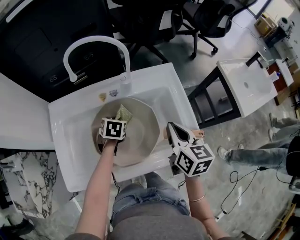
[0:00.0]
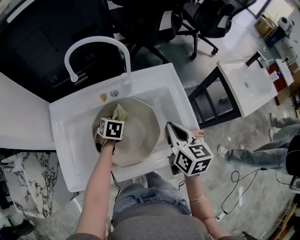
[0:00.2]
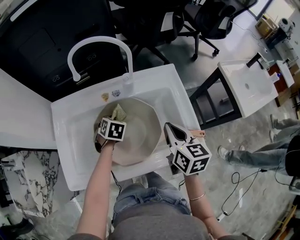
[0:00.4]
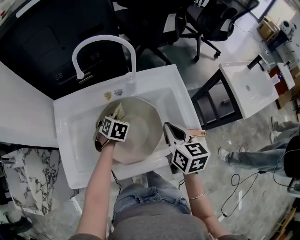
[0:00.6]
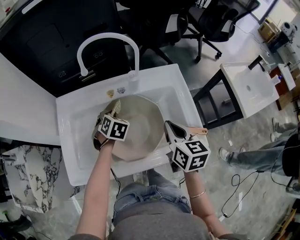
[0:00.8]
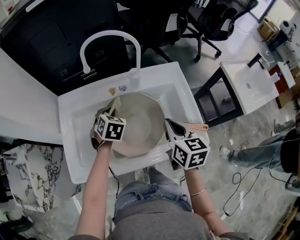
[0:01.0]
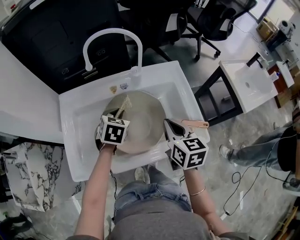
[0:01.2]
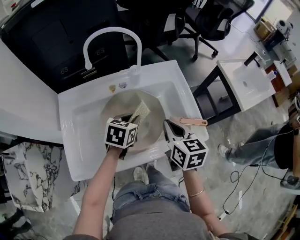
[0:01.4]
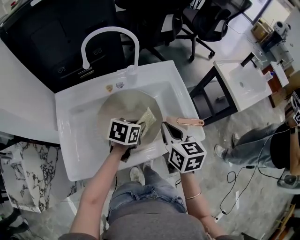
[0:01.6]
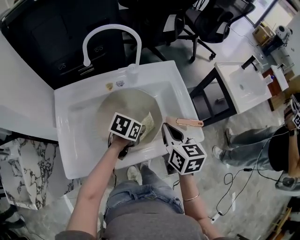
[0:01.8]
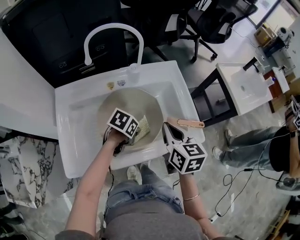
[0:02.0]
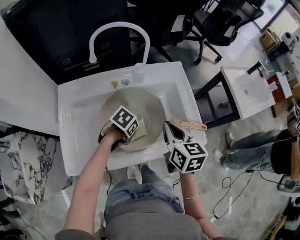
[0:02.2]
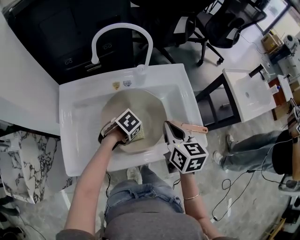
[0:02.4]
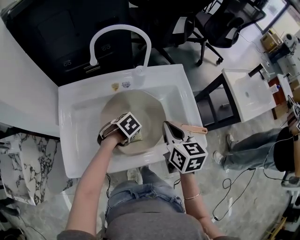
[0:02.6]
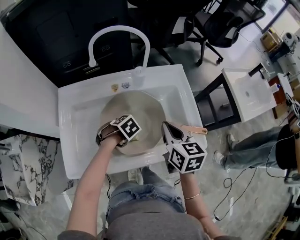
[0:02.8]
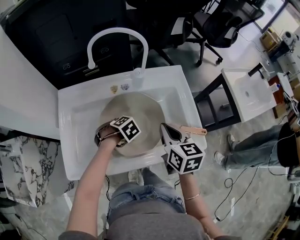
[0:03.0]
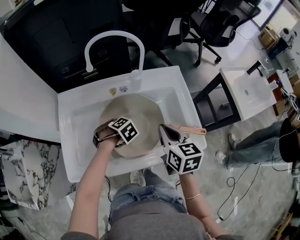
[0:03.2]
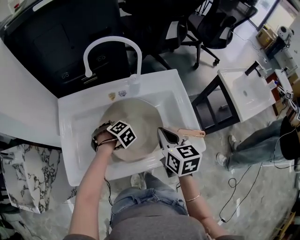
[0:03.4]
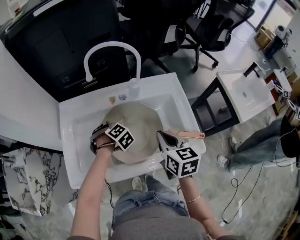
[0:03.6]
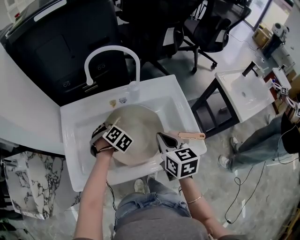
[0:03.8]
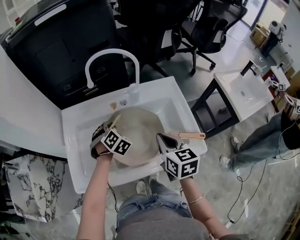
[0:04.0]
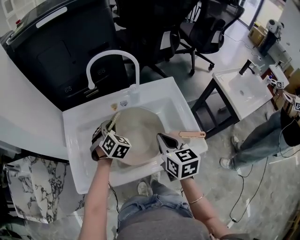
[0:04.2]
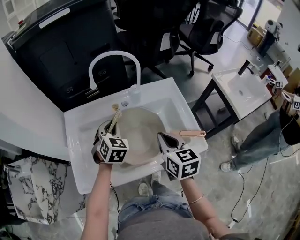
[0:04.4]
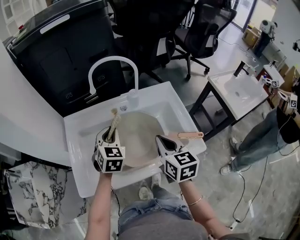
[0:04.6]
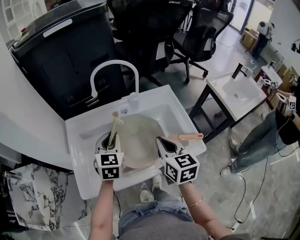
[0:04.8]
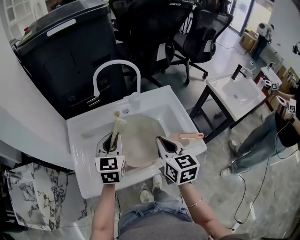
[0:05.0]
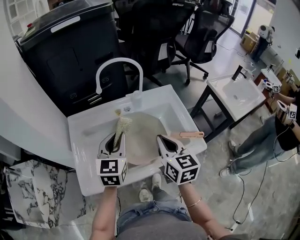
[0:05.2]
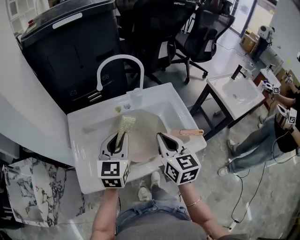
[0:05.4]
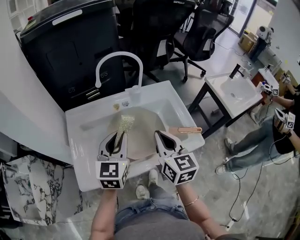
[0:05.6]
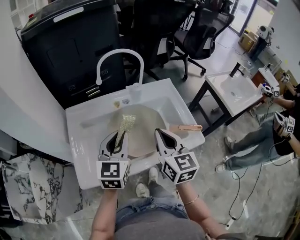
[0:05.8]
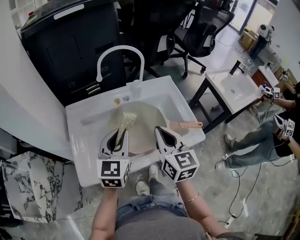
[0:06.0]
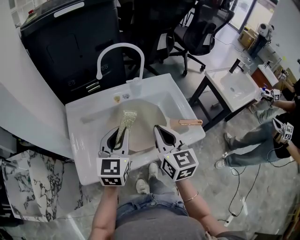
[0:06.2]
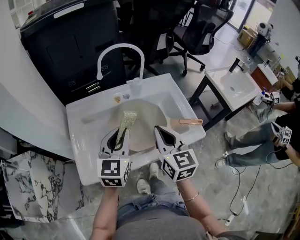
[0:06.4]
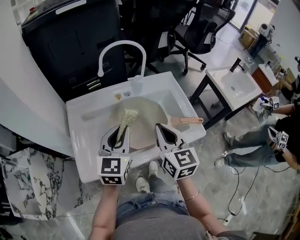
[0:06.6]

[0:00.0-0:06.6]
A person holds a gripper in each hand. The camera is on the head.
0:00.0 to 0:01.6: The left gripper changes place by roughly 15 cm, and rotates some 30 degrees. The right gripper changes place by about 5 cm.
0:01.6 to 0:03.2: The left gripper changes place by approximately 15 cm, and points its fingers about 40 degrees further downward.
0:03.2 to 0:05.0: The left gripper goes approximately 20 cm upward, and angles its fingers upward, by roughly 60 degrees; the right gripper travels upward by roughly 5 cm.
0:05.0 to 0:06.6: The right gripper ends up about 5 cm from where it was, while the left gripper goes some 5 cm backward.

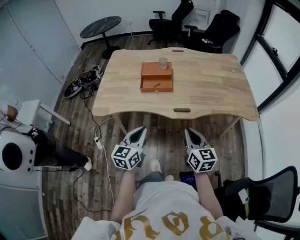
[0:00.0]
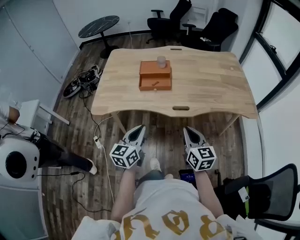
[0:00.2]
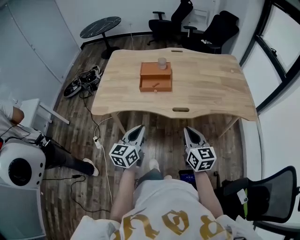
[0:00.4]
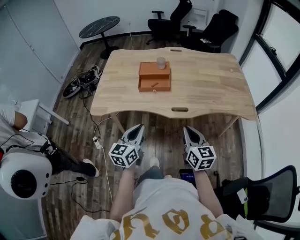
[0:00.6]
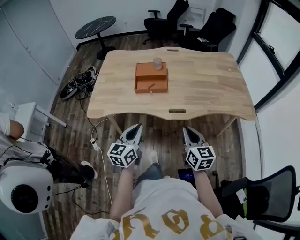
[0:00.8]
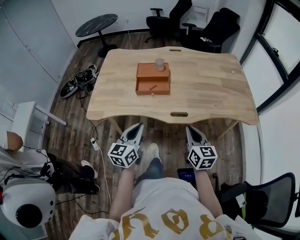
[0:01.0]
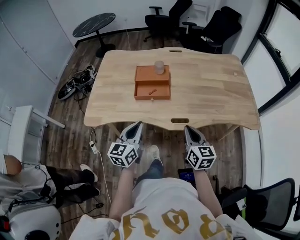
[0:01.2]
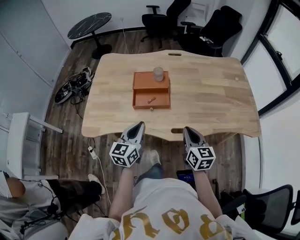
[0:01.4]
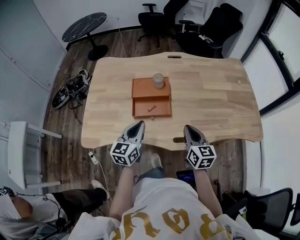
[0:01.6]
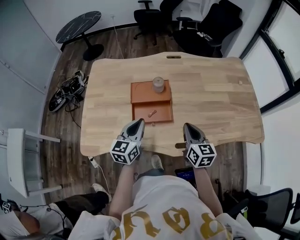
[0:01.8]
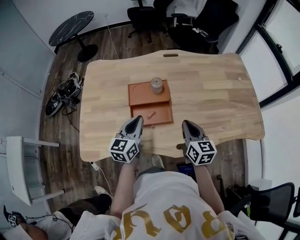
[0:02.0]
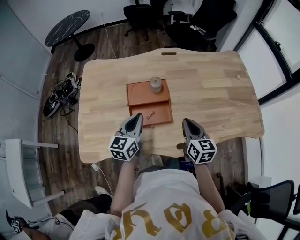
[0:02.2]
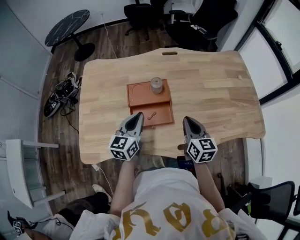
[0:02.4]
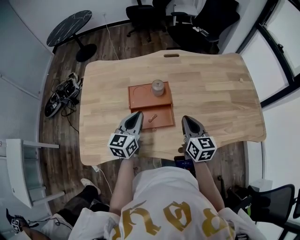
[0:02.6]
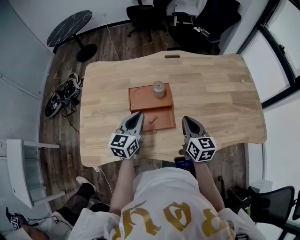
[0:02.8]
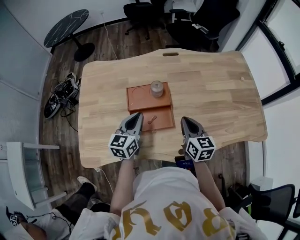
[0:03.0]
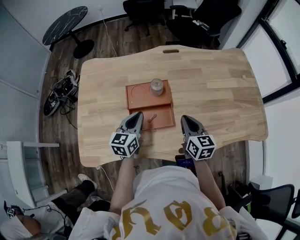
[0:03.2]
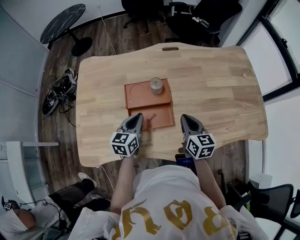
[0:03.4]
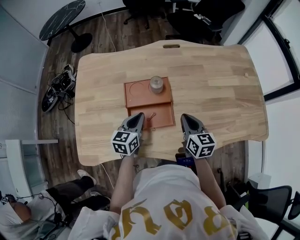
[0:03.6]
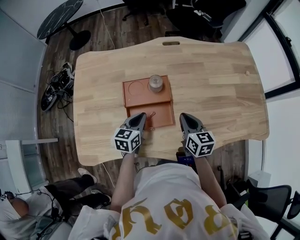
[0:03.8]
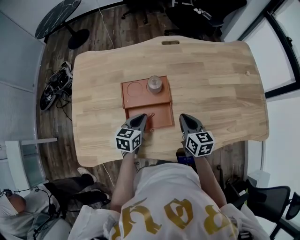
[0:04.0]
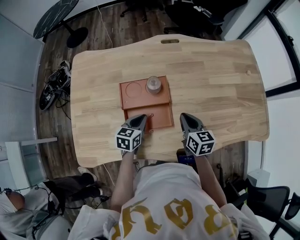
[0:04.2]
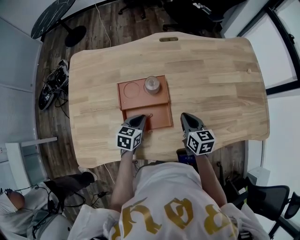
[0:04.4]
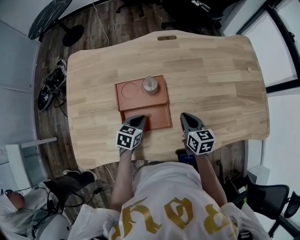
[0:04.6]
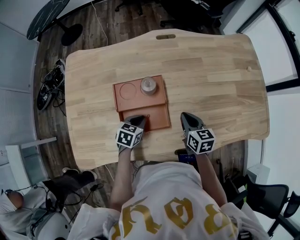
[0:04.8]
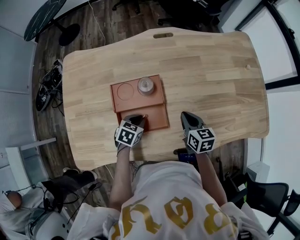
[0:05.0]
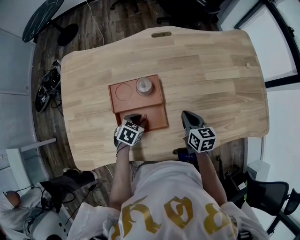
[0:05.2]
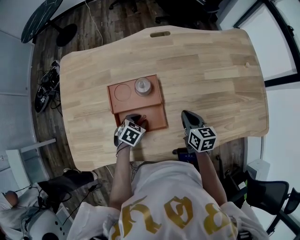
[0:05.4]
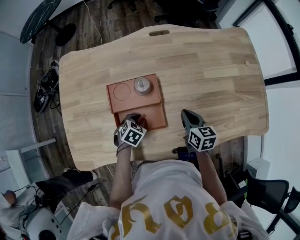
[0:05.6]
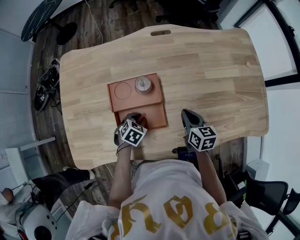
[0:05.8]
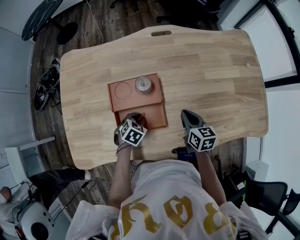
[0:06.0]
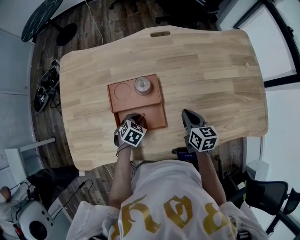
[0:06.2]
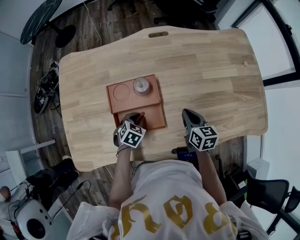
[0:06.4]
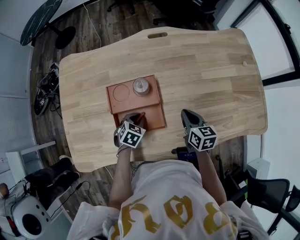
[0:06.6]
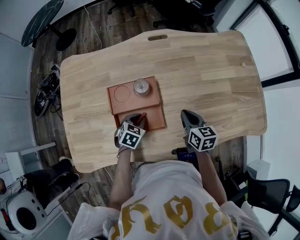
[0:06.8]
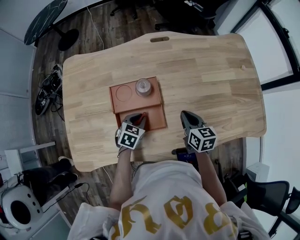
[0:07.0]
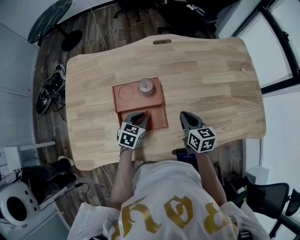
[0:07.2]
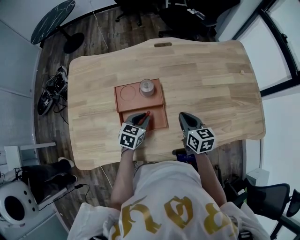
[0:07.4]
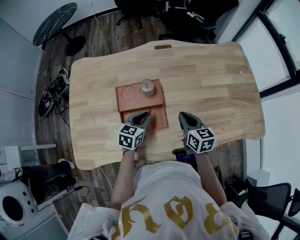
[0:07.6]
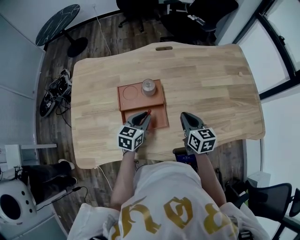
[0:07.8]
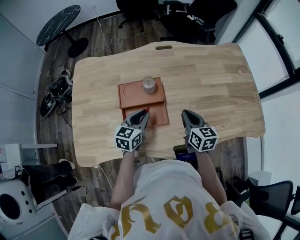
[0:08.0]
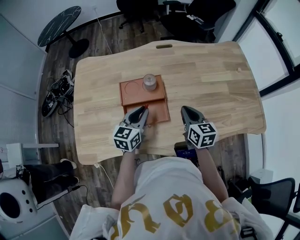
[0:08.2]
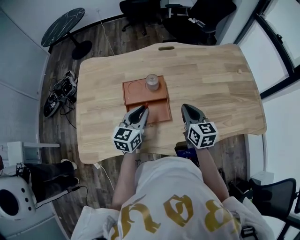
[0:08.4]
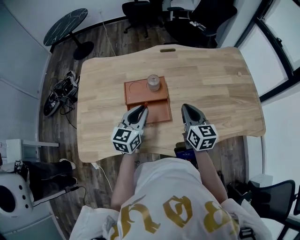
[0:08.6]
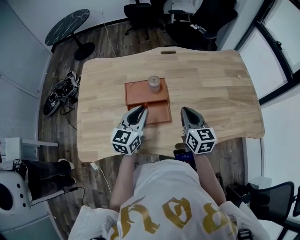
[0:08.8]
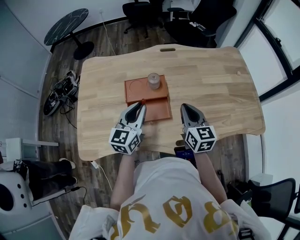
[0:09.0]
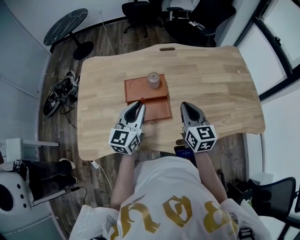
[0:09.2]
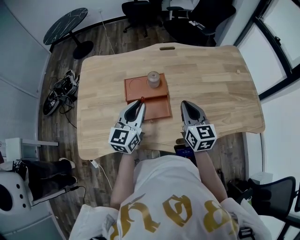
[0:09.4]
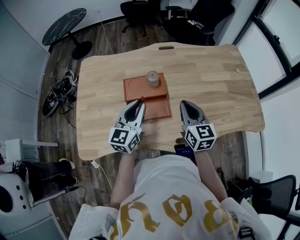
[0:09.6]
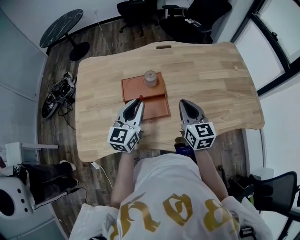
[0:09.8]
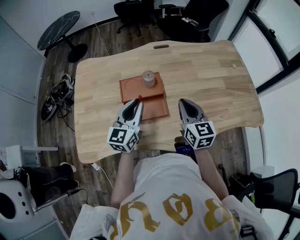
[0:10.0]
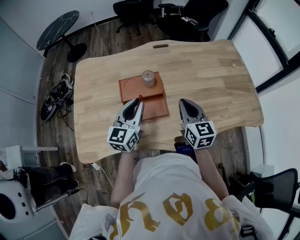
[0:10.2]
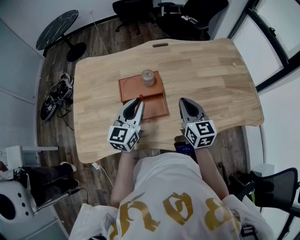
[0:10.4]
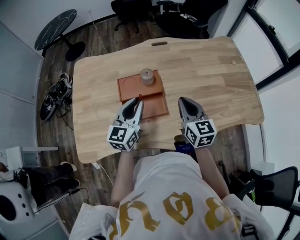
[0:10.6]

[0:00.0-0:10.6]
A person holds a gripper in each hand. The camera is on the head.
0:00.0 to 0:01.6: Both grippers move forward, some 30 cm.
0:01.6 to 0:03.0: Both grippers move forward, some 15 cm.
0:03.0 to 0:04.6: The right gripper is displaced downward and forward by roughly 10 cm. The left gripper heads downward, covering approximately 15 cm, and points its fingers roughly 30 degrees further downward.
0:04.6 to 0:06.0: The left gripper is displaced downward by approximately 5 cm, and turns by about 30 degrees.
0:06.0 to 0:07.6: The right gripper heads upward, covering about 5 cm; the left gripper is displaced upward by some 10 cm, and angles its fingers upward, by approximately 30 degrees.
0:07.6 to 0:09.0: Both grippers move upward and backward, some 15 cm. The left gripper changes its angle by about 30 degrees.
0:09.0 to 0:10.6: The grippers stay close to where they were, moving slightly.

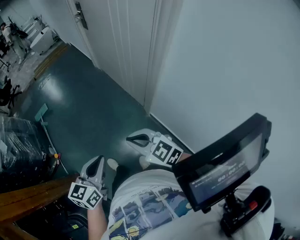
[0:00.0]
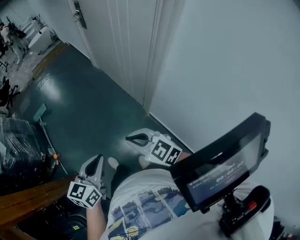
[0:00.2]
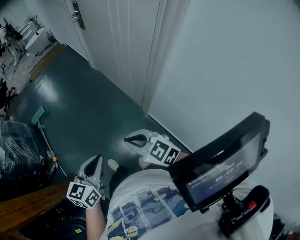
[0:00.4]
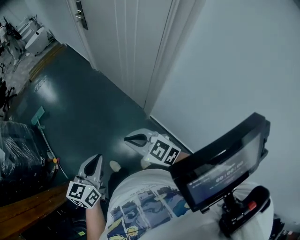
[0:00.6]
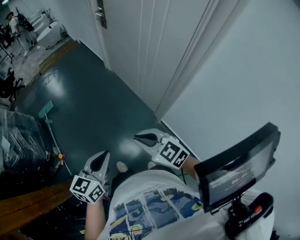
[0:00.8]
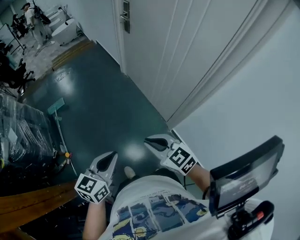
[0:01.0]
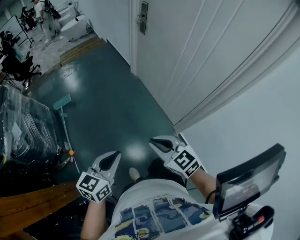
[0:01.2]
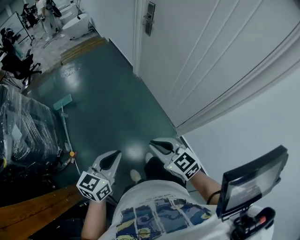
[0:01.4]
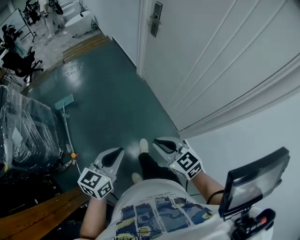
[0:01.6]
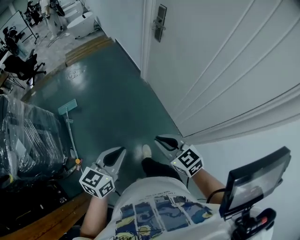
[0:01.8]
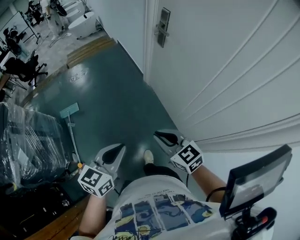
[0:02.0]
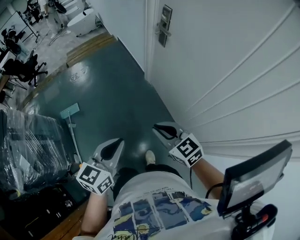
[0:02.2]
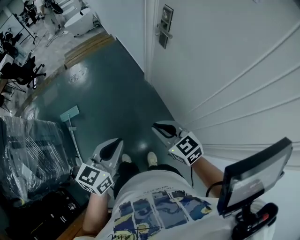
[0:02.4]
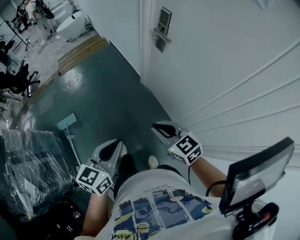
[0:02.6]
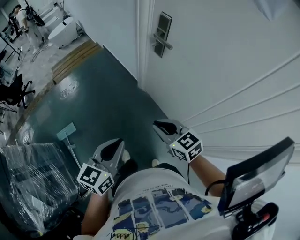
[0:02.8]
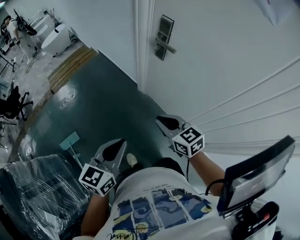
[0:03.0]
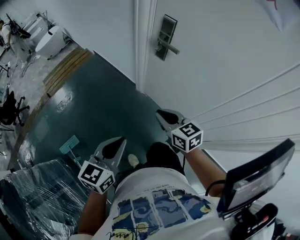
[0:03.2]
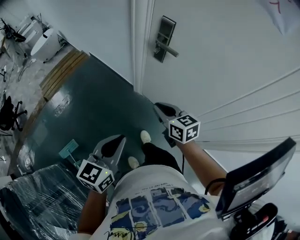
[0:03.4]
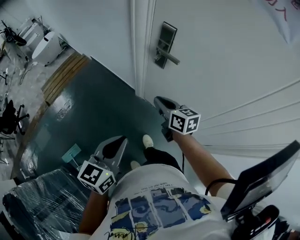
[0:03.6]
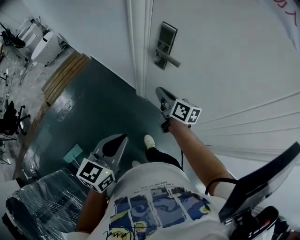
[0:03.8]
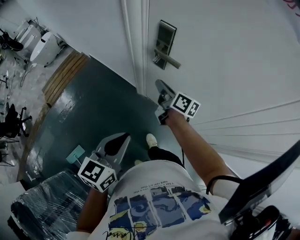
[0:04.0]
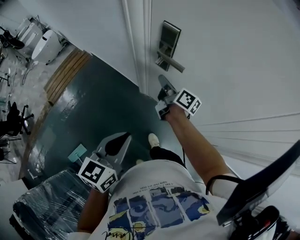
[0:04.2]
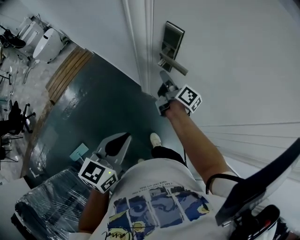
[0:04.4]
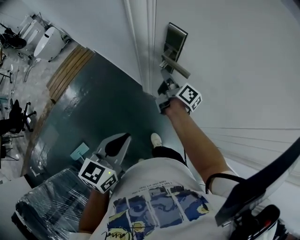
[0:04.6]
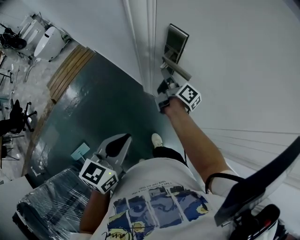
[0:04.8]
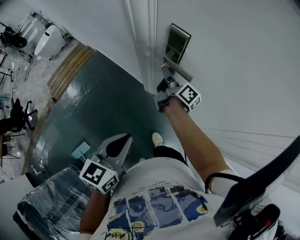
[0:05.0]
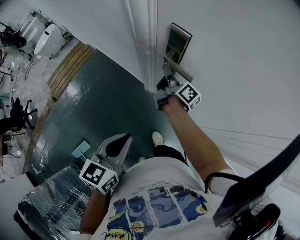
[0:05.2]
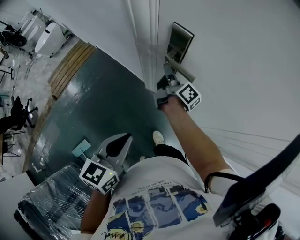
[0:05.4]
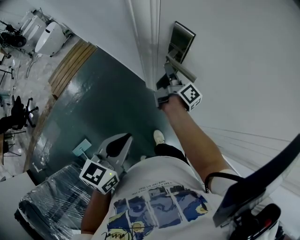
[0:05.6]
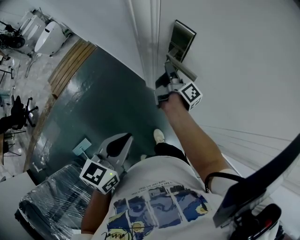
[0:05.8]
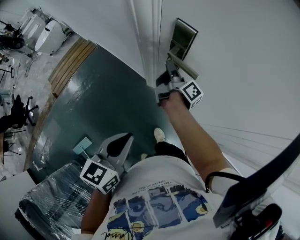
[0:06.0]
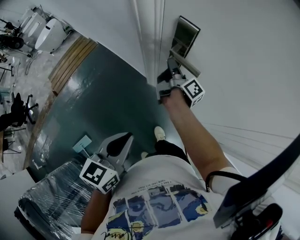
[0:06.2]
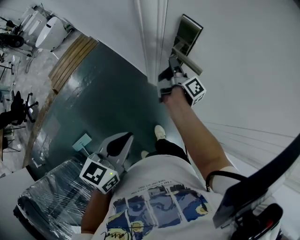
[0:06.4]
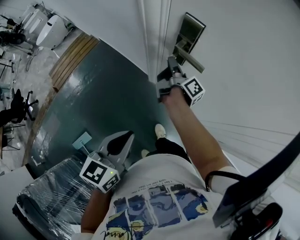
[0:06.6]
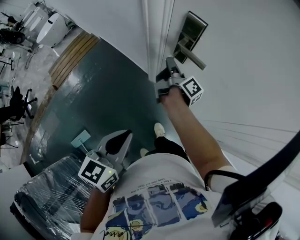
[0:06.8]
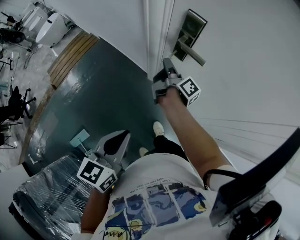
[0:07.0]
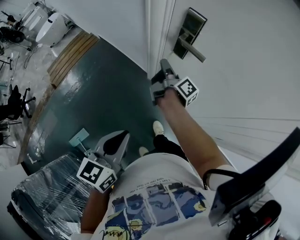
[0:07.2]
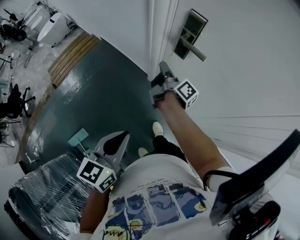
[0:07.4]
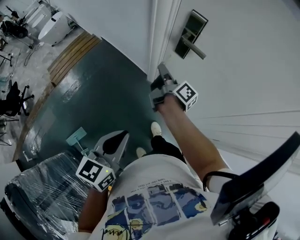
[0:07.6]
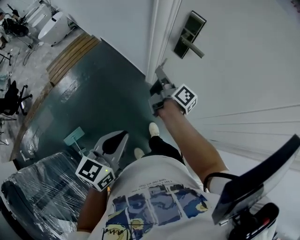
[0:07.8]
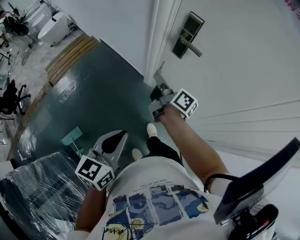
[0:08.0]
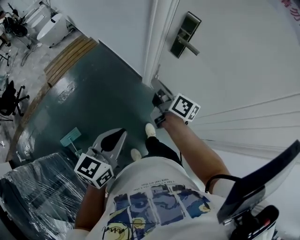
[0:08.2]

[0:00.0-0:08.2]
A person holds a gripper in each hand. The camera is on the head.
0:00.0 to 0:01.6: The grippers both shift forward and to the left by some 30 cm.
0:01.6 to 0:03.2: The pair of grippers is taken forward, some 50 cm. The right gripper swivels some 30 degrees.
0:03.2 to 0:05.0: The left gripper goes about 20 cm forward. Meanwhile the right gripper travels forward by about 35 cm, and twists roughly 60 degrees clockwise, seen from behind.
0:05.0 to 0:06.6: The grippers make only small movements.
0:06.6 to 0:08.2: The left gripper heads backward, covering roughly 15 cm; the right gripper moves backward, approximately 20 cm, and swivels some 40 degrees.
